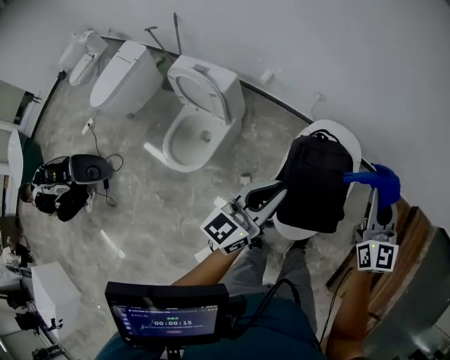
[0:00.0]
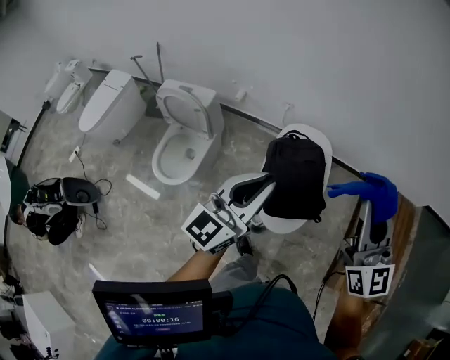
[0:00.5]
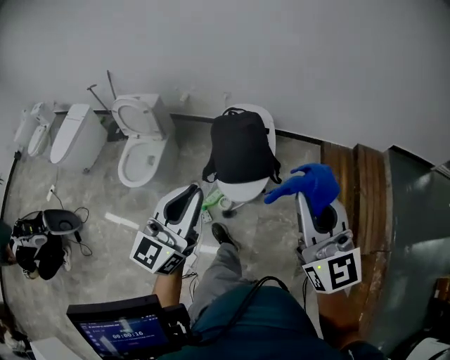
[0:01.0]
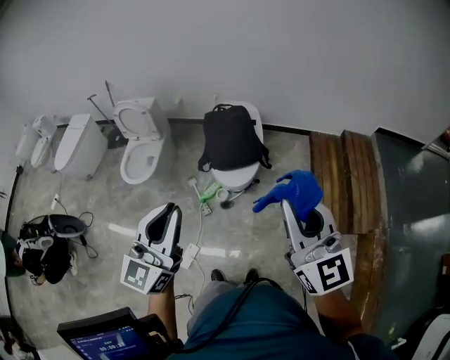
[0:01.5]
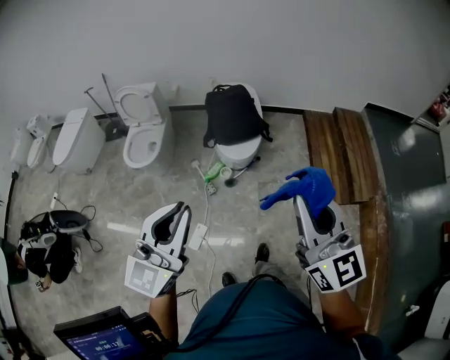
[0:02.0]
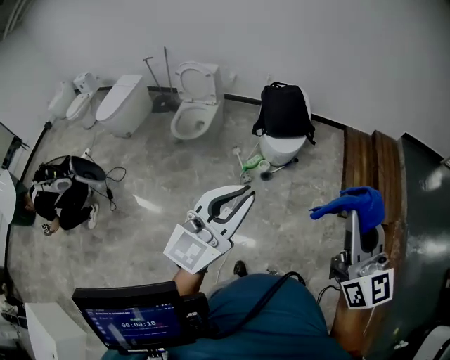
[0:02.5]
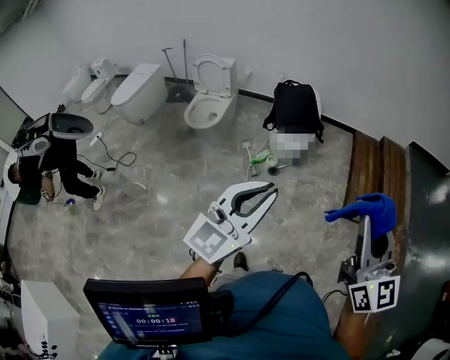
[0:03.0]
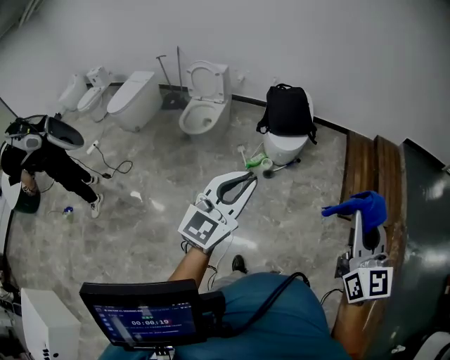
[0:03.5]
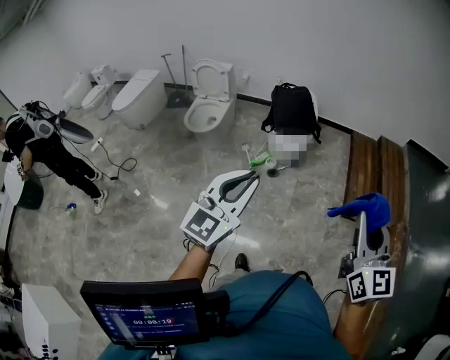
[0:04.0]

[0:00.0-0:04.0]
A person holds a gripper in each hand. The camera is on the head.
0:00.0 to 0:02.0: Both grippers are carried backward, about 70 cm. The left gripper swivels roughly 30 degrees.
0:02.0 to 0:04.0: The left gripper heads backward, covering roughly 15 cm, while the right gripper goes some 20 cm backward and to the right.

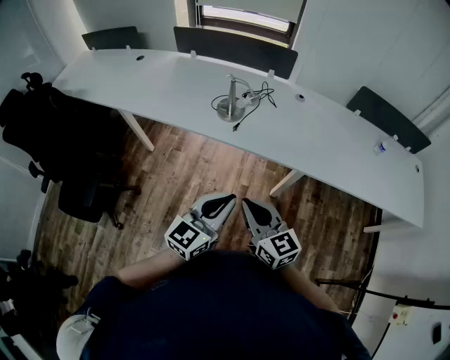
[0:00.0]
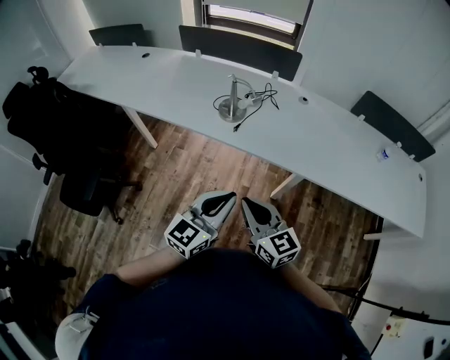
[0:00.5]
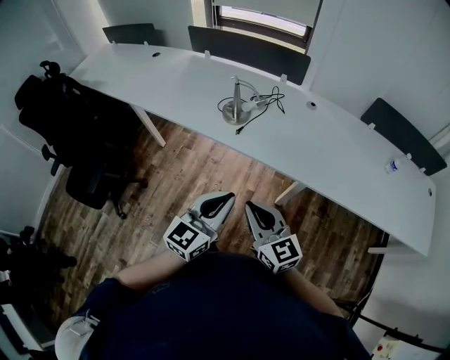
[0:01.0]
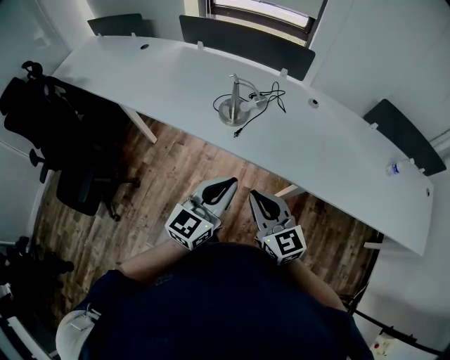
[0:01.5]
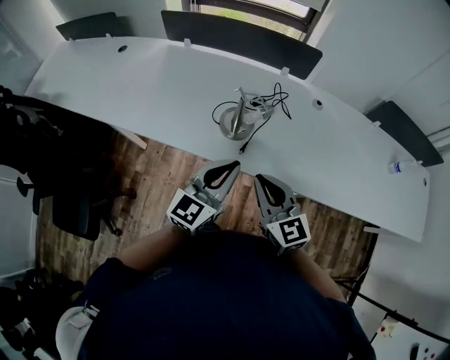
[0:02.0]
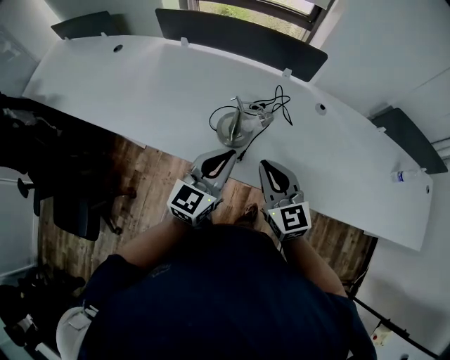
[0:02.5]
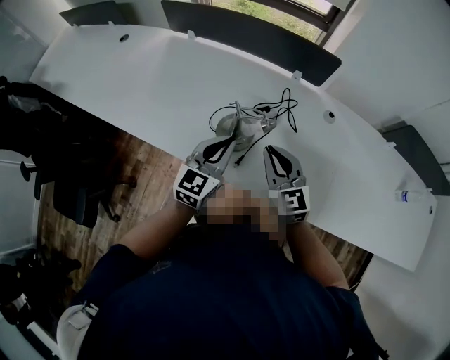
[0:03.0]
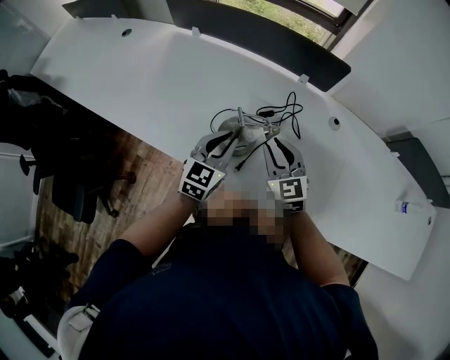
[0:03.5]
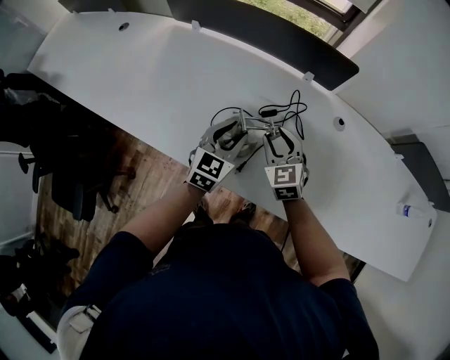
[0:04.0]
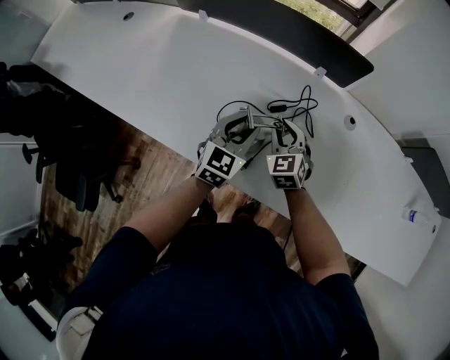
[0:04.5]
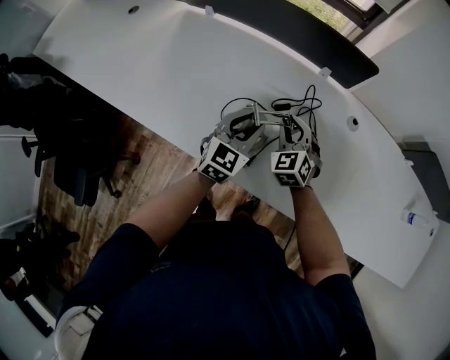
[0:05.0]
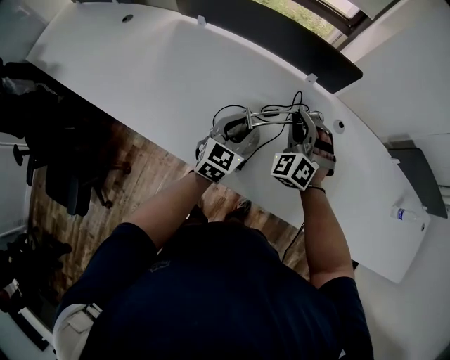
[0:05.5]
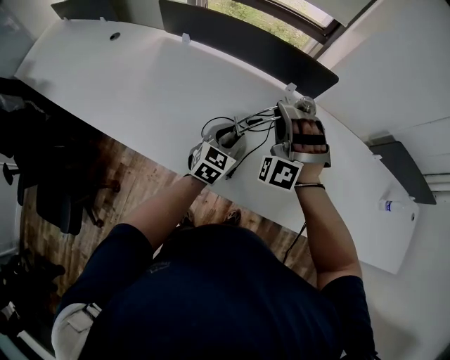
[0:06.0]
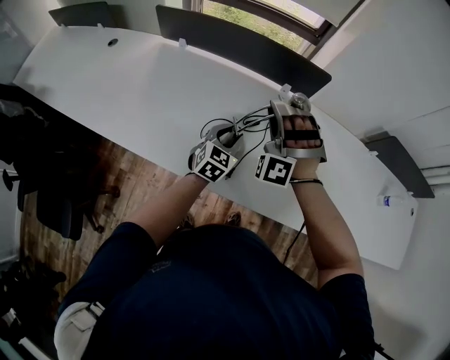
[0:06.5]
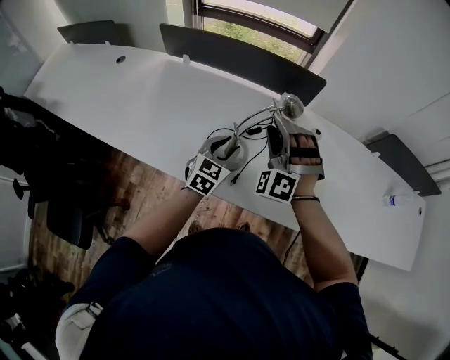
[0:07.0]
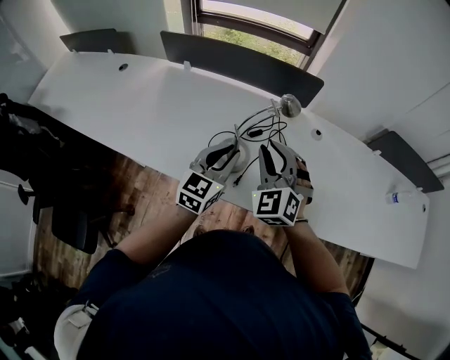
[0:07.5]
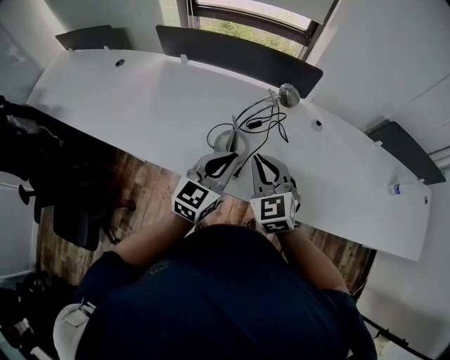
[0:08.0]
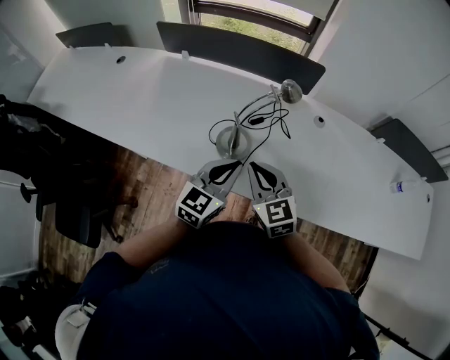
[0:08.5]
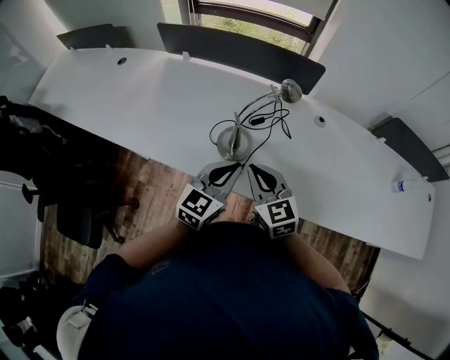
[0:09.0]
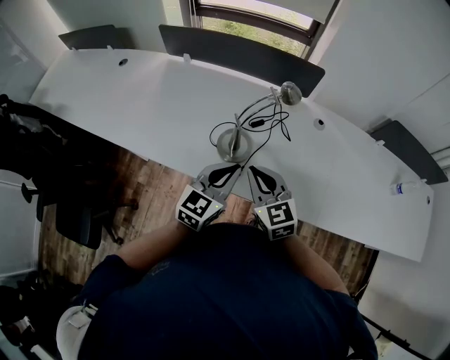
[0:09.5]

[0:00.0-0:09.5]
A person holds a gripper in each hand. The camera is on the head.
0:00.0 to 0:02.0: The two grippers go approximately 30 cm forward.
0:02.0 to 0:04.0: The grippers both shift forward and downward by roughly 30 cm. The right gripper turns by some 20 degrees, and opens, while the left gripper changes its angle by roughly 20 degrees, and opens its fingers.
0:04.0 to 0:05.5: The right gripper moves upward and forward, roughly 10 cm, and rotates around the line of its fingers by some 40 degrees, counterclockwise from behind.
0:05.5 to 0:07.5: The right gripper is displaced backward and upward by about 20 cm, and changes its angle by roughly 20 degrees; the left gripper is displaced upward and backward by roughly 15 cm.
0:07.5 to 0:09.5: The left gripper travels backward by some 5 cm. The right gripper travels backward and downward by about 10 cm, swivels about 40 degrees, and closes up.

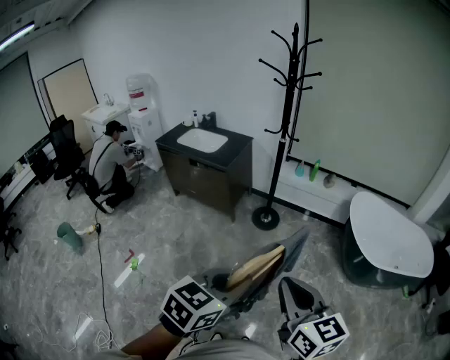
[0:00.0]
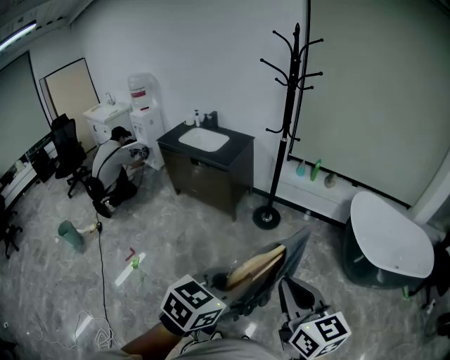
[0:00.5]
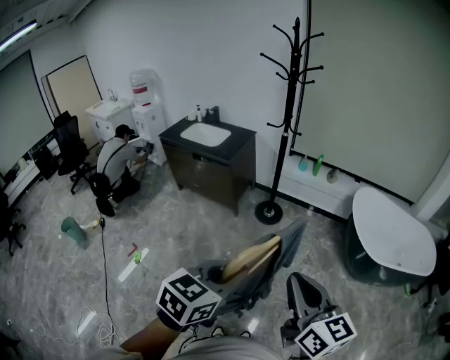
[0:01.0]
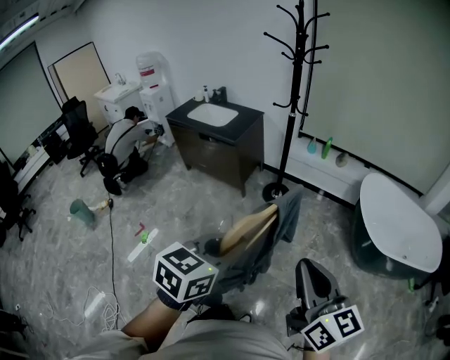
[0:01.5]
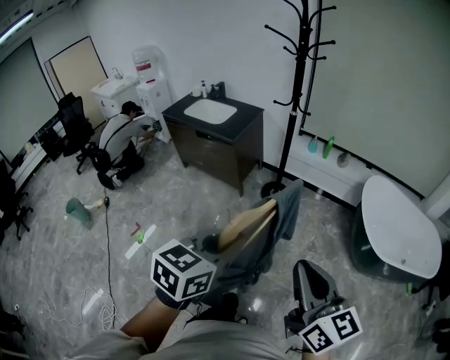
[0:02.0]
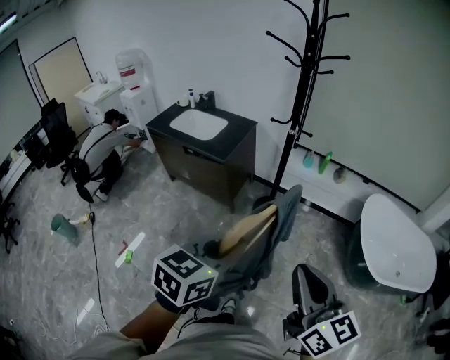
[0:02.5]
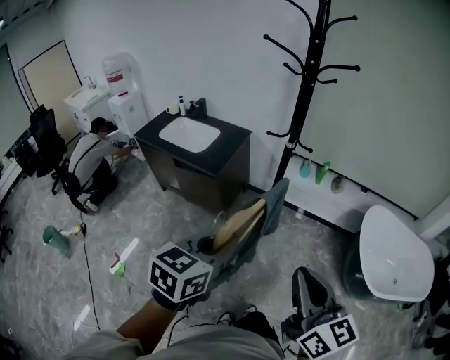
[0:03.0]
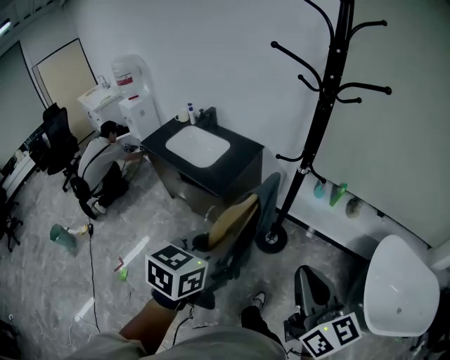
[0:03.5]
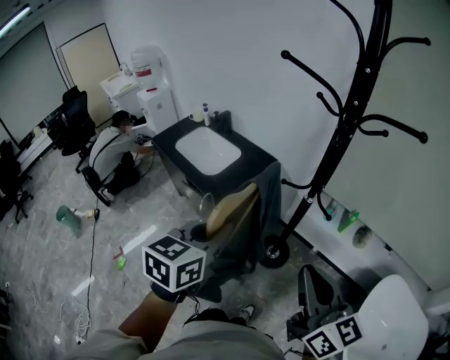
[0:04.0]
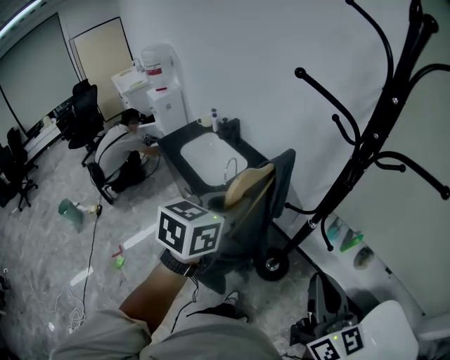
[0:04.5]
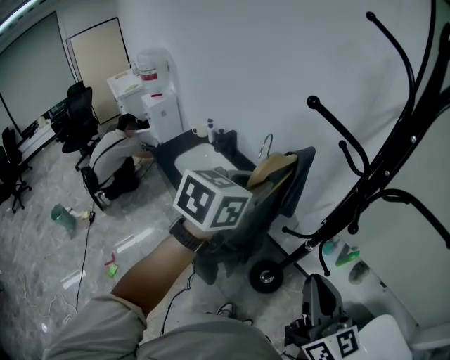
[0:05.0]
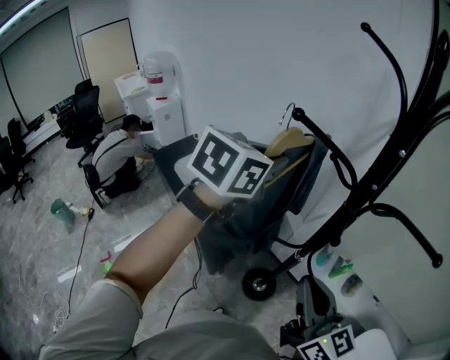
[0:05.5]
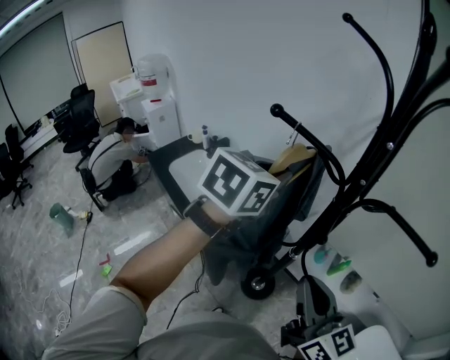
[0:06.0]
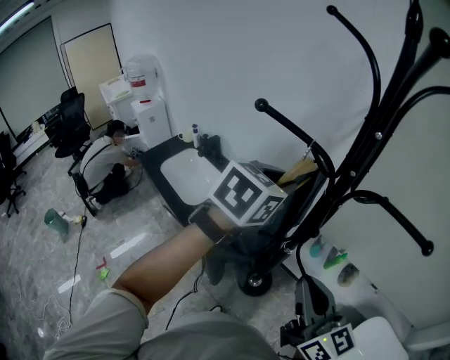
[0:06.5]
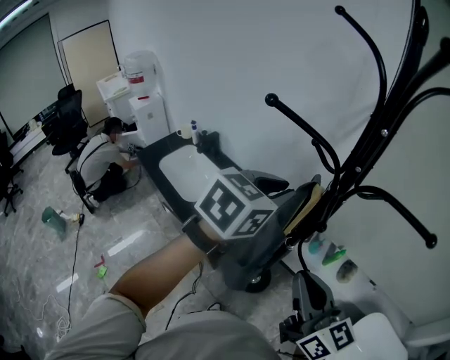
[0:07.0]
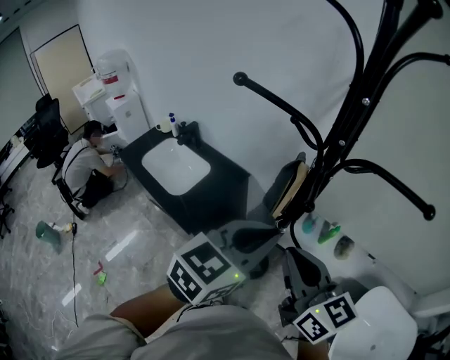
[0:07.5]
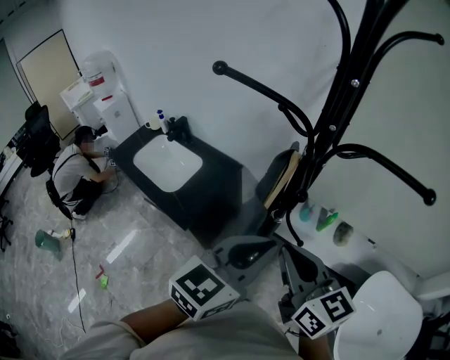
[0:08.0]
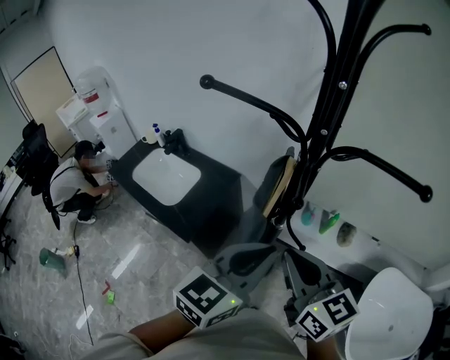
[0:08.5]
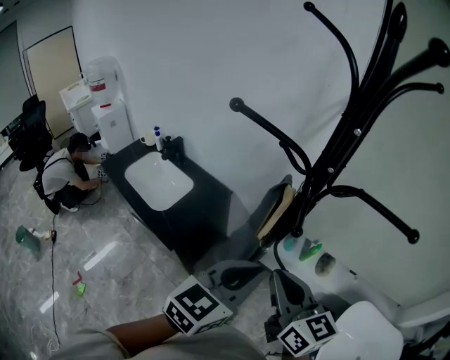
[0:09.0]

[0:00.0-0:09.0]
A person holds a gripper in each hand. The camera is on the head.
0:00.0 to 0:02.0: The left gripper moves forward, about 10 cm. Meanwhile the right gripper travels to the right and forward by roughly 10 cm.
0:02.0 to 0:04.5: The two grippers travel together, forward, roughly 70 cm.
0:04.5 to 0:07.0: The left gripper is displaced to the right, forward and upward by approximately 20 cm, and turns by approximately 20 degrees. Meanwhile the right gripper goes approximately 10 cm forward.
0:07.0 to 0:09.0: The left gripper goes some 15 cm backward, downward and to the right.

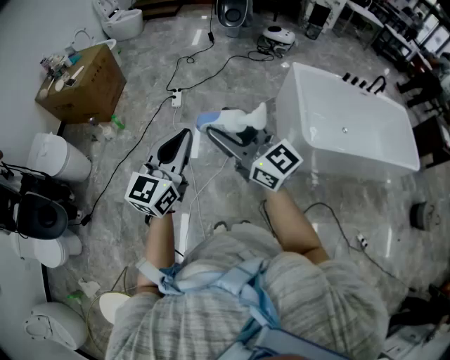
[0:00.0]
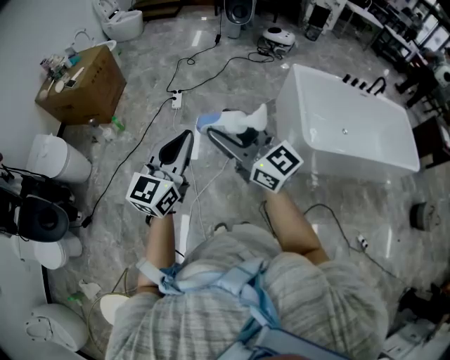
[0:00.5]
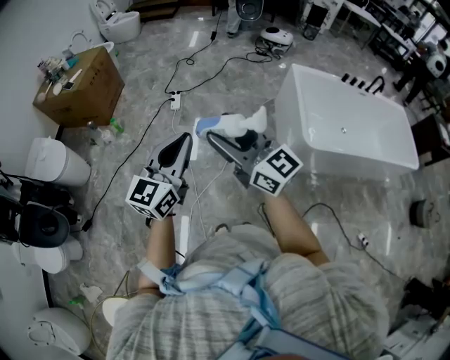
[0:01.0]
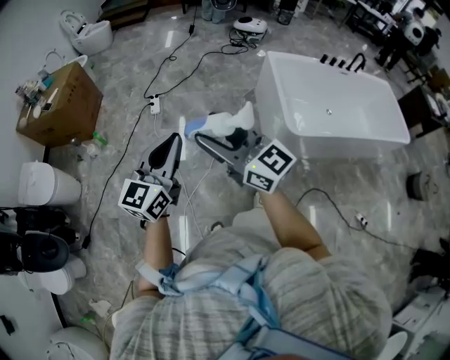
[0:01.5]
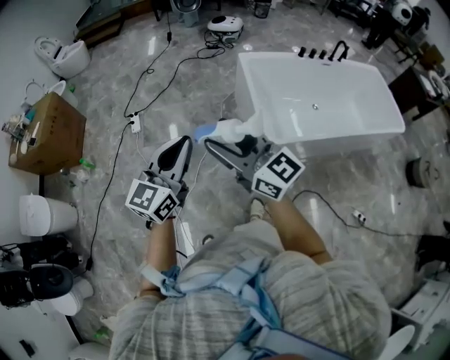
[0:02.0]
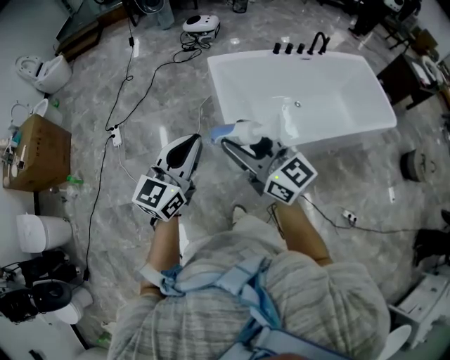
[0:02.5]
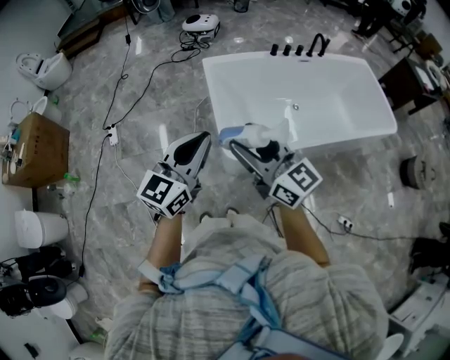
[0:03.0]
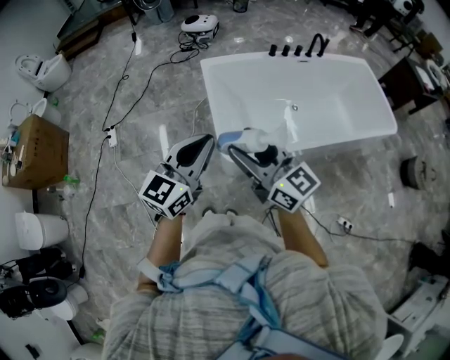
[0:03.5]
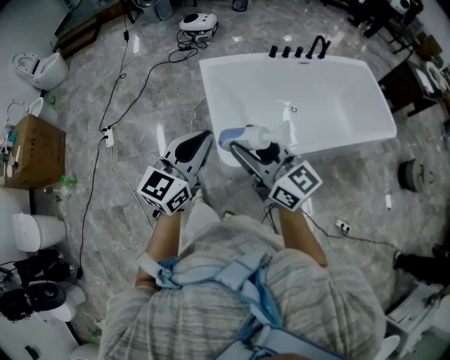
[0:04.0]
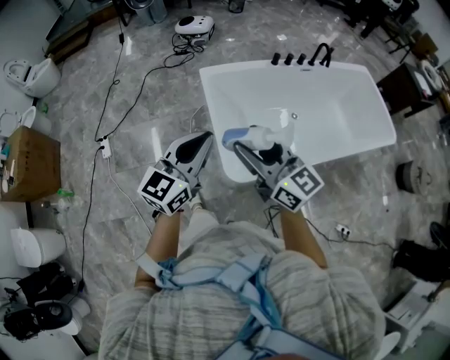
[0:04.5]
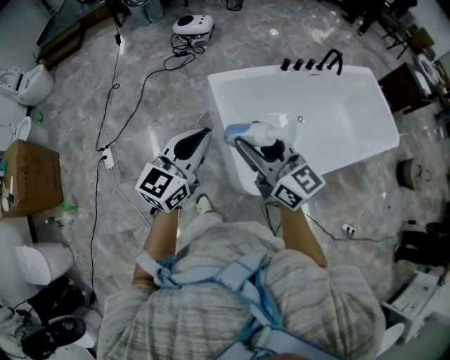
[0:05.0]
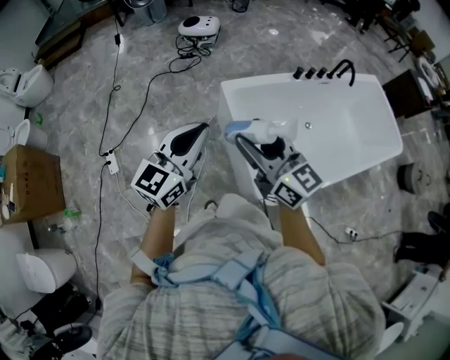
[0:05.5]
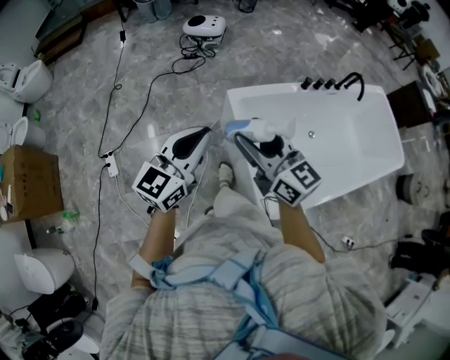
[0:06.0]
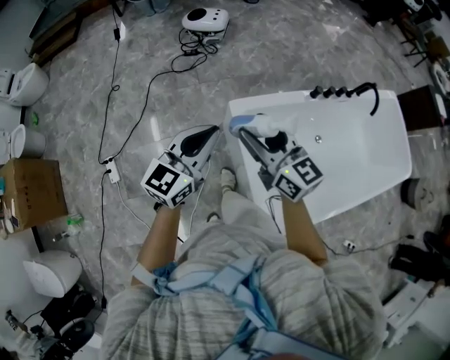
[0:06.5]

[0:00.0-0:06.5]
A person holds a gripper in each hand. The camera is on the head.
0:00.0 to 0:02.0: The grippers both shift to the right by some 25 cm.
0:02.0 to 0:04.5: The grippers both shift to the right and forward by roughly 35 cm.
0:04.5 to 0:06.5: Both grippers are carried forward and to the left, approximately 40 cm.
